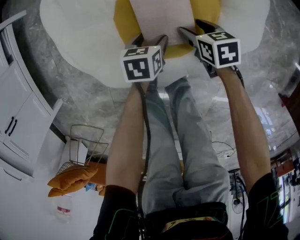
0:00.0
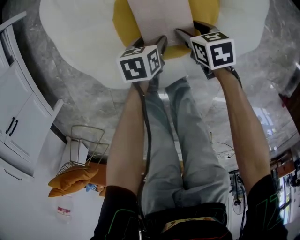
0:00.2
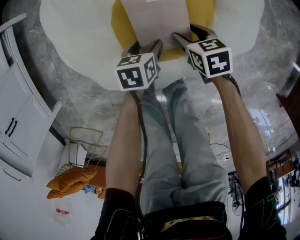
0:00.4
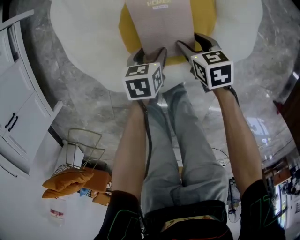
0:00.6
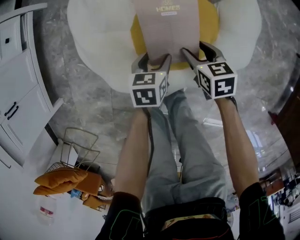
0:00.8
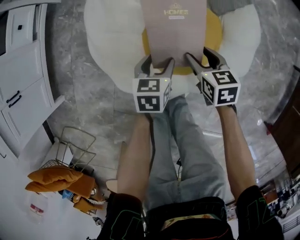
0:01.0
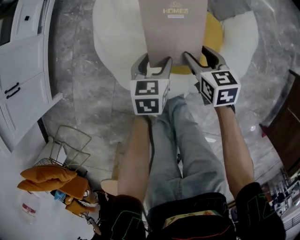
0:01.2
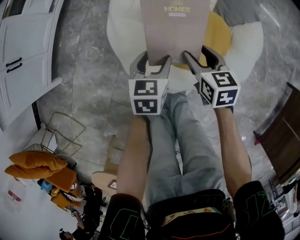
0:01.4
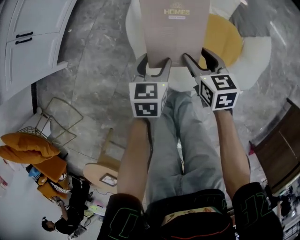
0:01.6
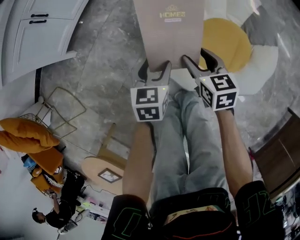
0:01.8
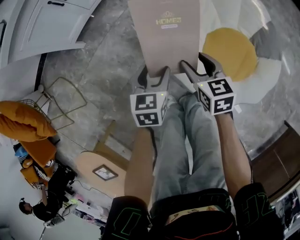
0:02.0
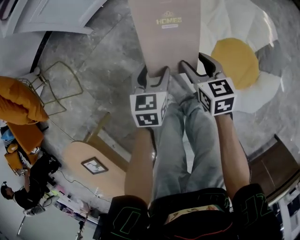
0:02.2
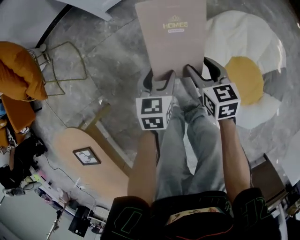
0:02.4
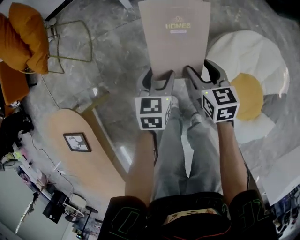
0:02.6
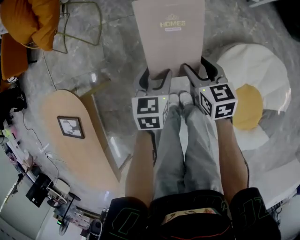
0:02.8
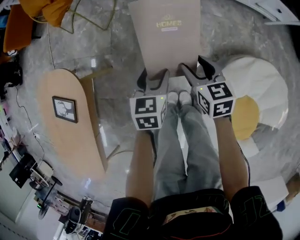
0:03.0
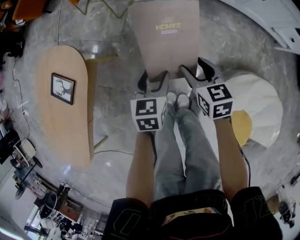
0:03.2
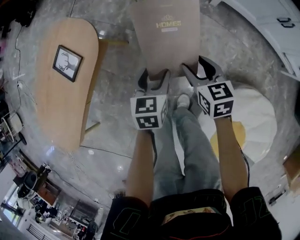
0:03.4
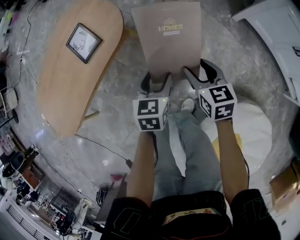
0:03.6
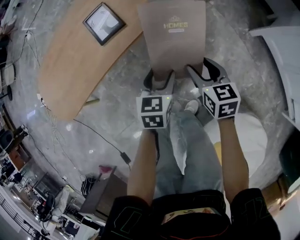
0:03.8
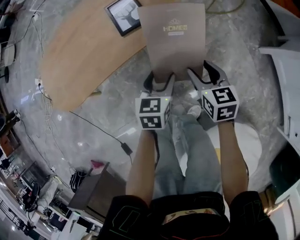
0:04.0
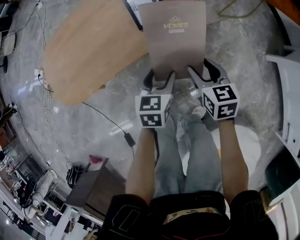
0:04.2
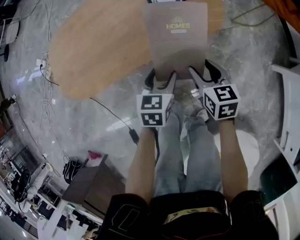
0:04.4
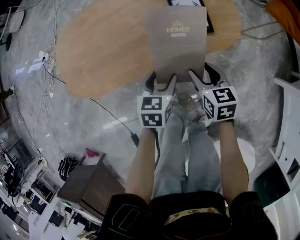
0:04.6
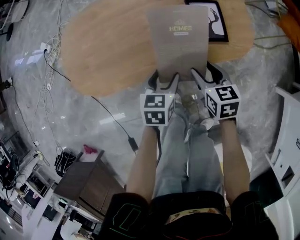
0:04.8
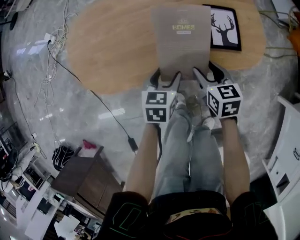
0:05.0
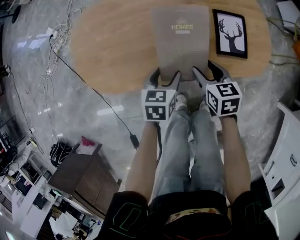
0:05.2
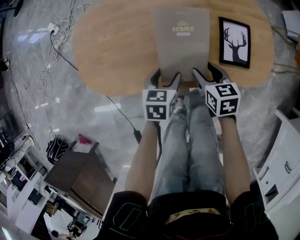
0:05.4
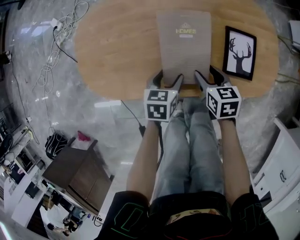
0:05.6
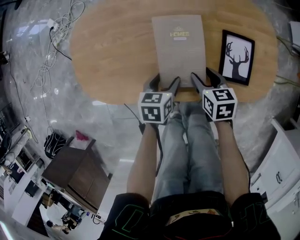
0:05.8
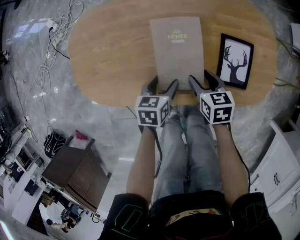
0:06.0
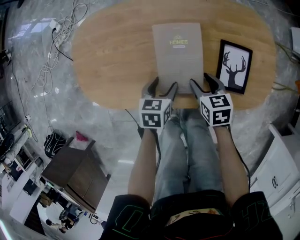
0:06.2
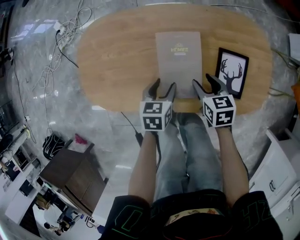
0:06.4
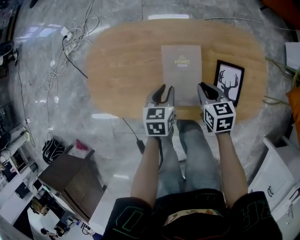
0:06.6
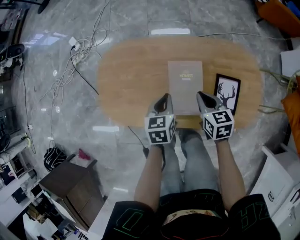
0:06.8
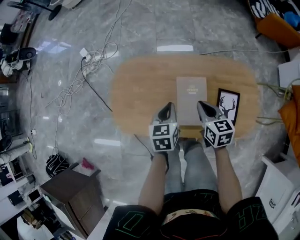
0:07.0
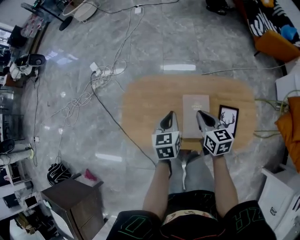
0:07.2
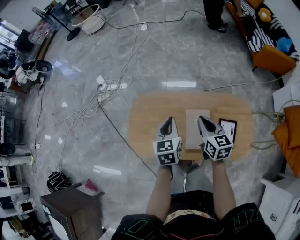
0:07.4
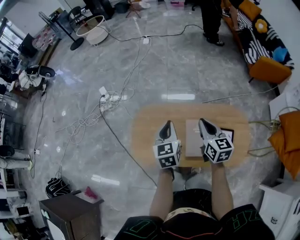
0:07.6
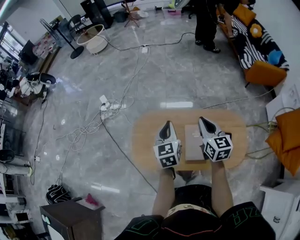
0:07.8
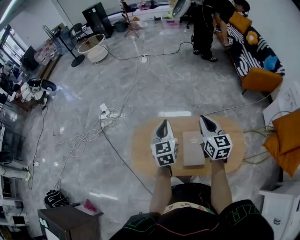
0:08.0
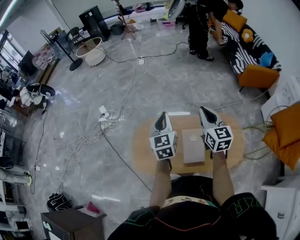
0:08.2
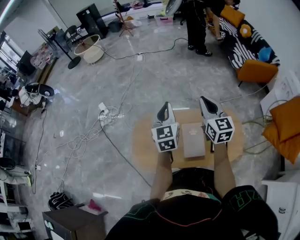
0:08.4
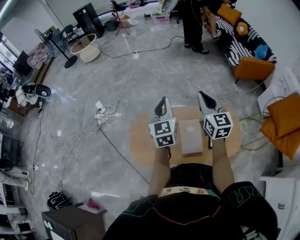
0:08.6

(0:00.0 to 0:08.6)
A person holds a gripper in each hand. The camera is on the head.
0:00.0 - 0:01.4: The two grippers go approximately 25 cm upward and to the left. The left gripper rotates roughly 30 degrees. The right gripper changes its angle by some 20 degrees.
0:01.4 - 0:02.8: The pair of grippers is taken approximately 50 cm. The right gripper turns by approximately 60 degrees; the left gripper swivels approximately 60 degrees.
0:02.8 - 0:04.4: Both grippers are carried approximately 60 cm. The right gripper rotates roughly 70 degrees; the left gripper rotates roughly 70 degrees.
0:04.4 - 0:05.8: The left gripper moves forward, to the left and downward, about 25 cm, and rotates approximately 30 degrees, while the right gripper is displaced forward and to the left by about 30 cm, and swivels roughly 20 degrees.
0:05.8 - 0:07.2: Both grippers travel together upward, approximately 30 cm. The left gripper changes its angle by approximately 30 degrees, and closes, while the right gripper turns by roughly 20 degrees, and closes.
0:07.2 - 0:08.6: The two grippers go roughly 30 cm upward. The right gripper changes its angle by roughly 30 degrees, while the left gripper rotates approximately 30 degrees.

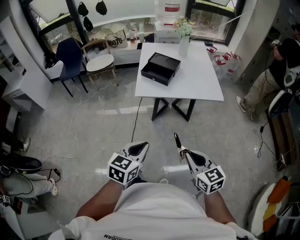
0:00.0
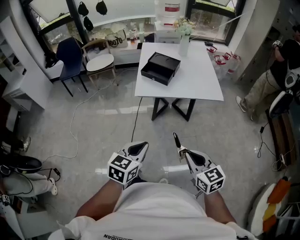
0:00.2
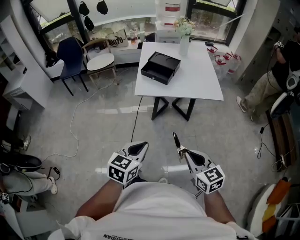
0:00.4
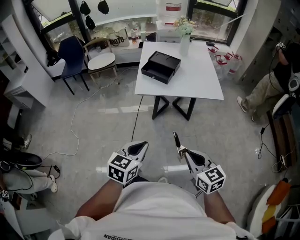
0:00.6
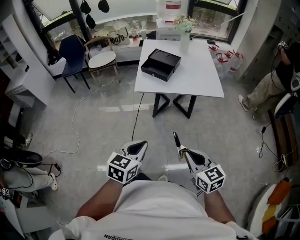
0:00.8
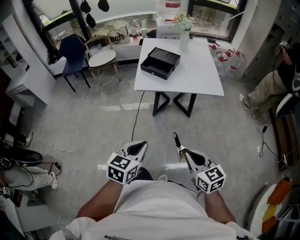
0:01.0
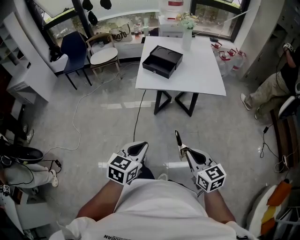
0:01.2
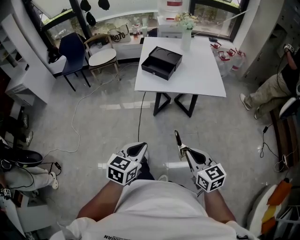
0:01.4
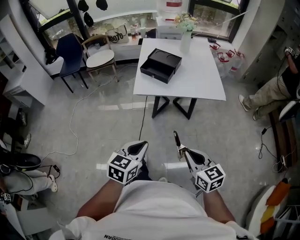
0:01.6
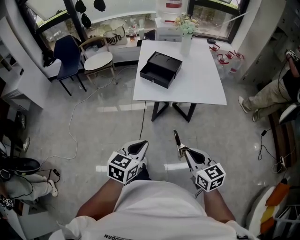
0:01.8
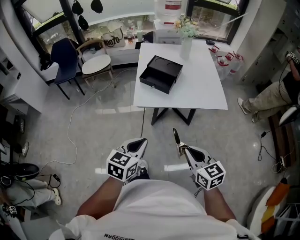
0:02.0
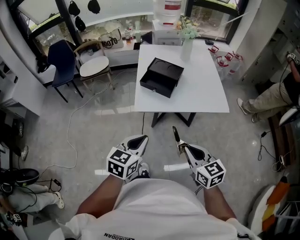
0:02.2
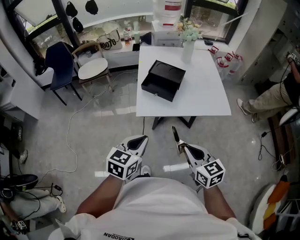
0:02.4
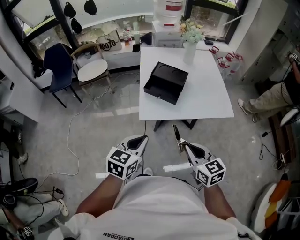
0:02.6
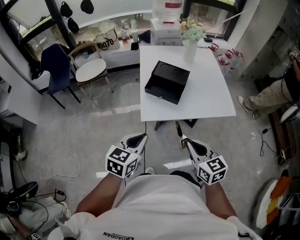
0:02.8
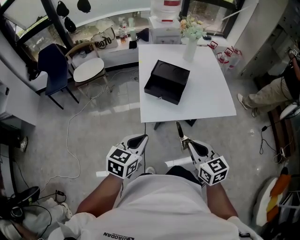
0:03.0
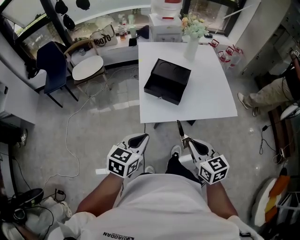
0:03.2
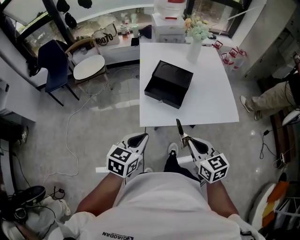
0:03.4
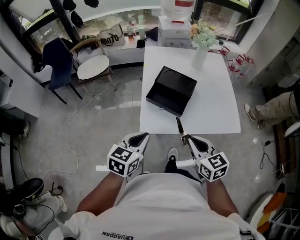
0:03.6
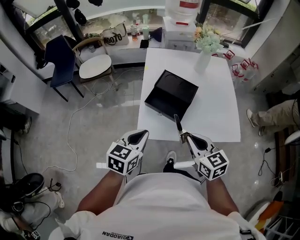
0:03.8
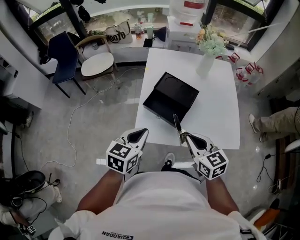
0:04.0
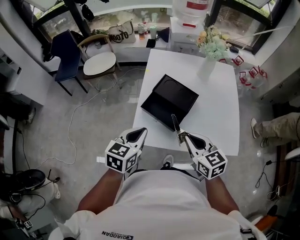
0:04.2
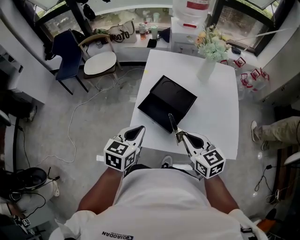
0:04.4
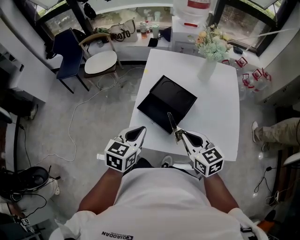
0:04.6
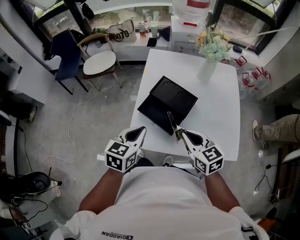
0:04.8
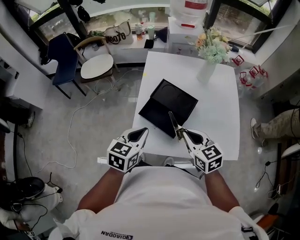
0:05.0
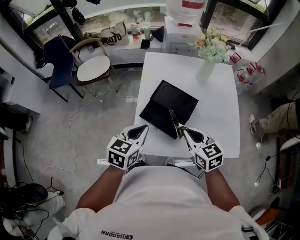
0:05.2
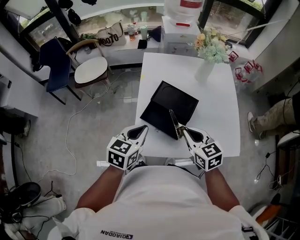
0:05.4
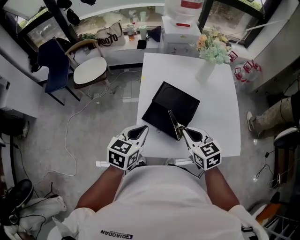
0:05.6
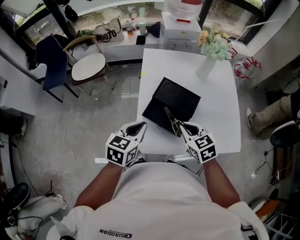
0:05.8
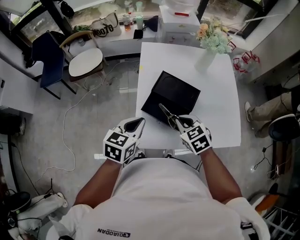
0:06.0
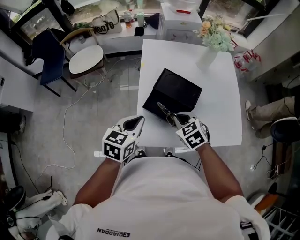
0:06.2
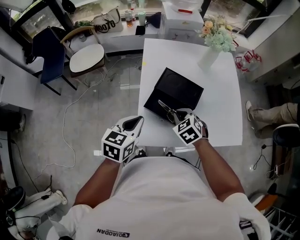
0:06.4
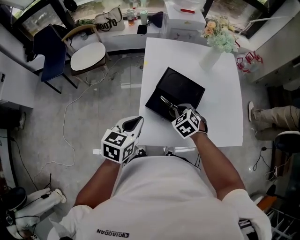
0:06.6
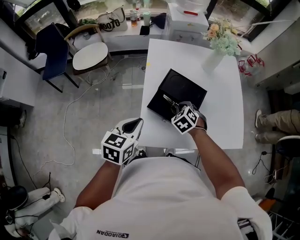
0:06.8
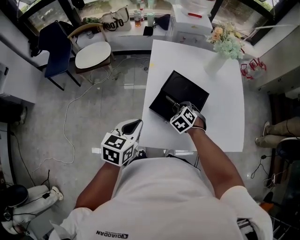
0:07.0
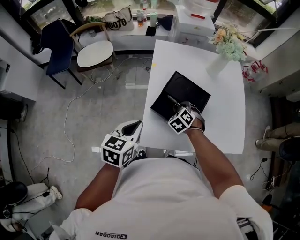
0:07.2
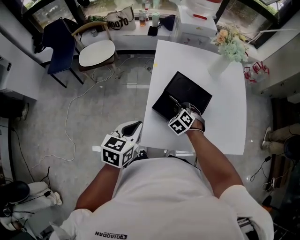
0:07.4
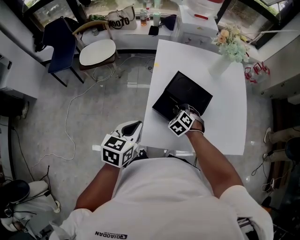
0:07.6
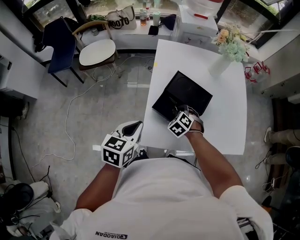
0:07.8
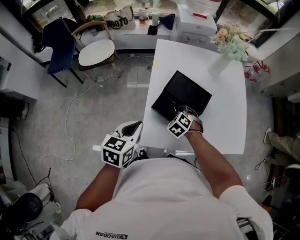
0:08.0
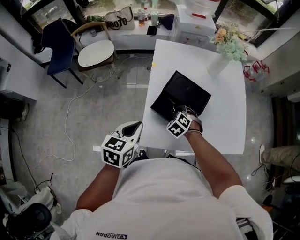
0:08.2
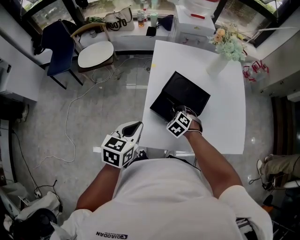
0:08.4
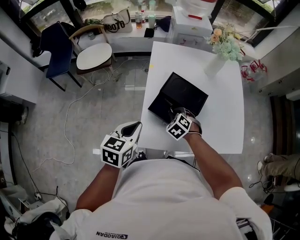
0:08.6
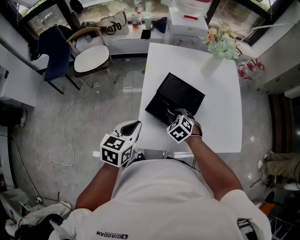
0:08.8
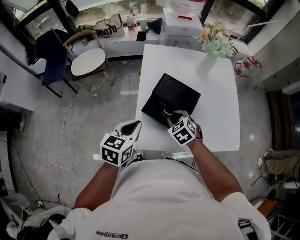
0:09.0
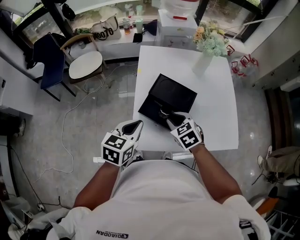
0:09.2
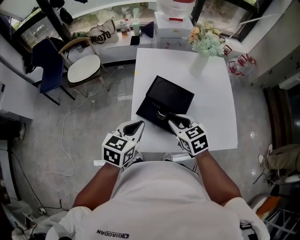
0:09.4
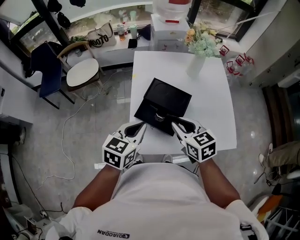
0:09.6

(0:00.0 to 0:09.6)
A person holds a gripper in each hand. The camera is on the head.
0:00.0 - 0:01.6: The grippers stay close to where they were, moving slightly.
0:01.6 - 0:03.2: The two grippers go some 30 cm forward and to the left.
0:03.2 - 0:04.8: The two grippers go roughly 20 cm forward. The right gripper changes its angle by approximately 20 degrees.
0:04.8 - 0:06.4: The left gripper moves to the left, roughly 10 cm. Meanwhile the right gripper is displaced downward, to the left and forward by some 15 cm, and changes its angle by approximately 40 degrees.
0:06.4 - 0:08.0: The right gripper travels downward by approximately 10 cm, and changes its angle by approximately 20 degrees.
0:08.0 - 0:09.6: The right gripper goes some 20 cm upward, and swivels some 60 degrees; the left gripper goes approximately 10 cm to the right.

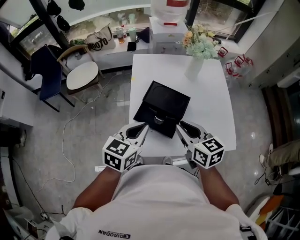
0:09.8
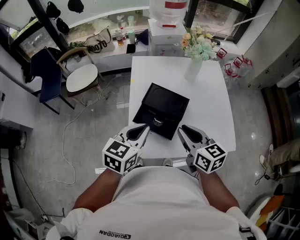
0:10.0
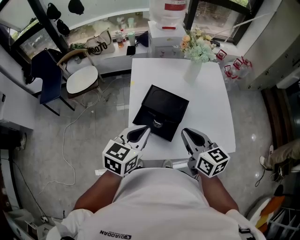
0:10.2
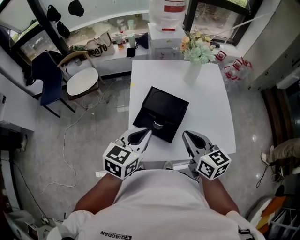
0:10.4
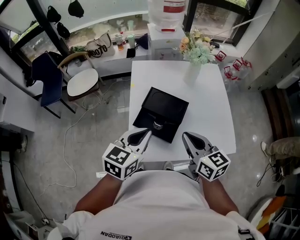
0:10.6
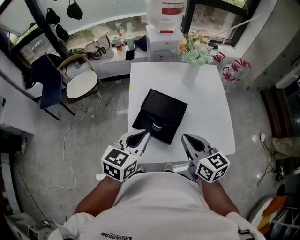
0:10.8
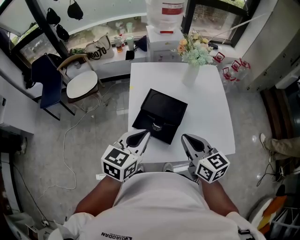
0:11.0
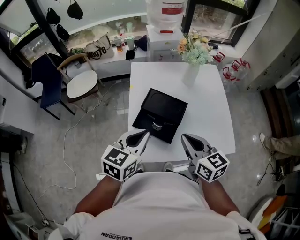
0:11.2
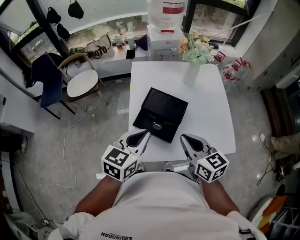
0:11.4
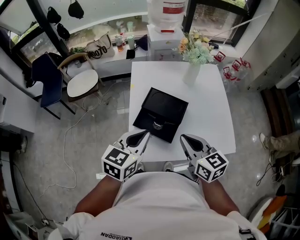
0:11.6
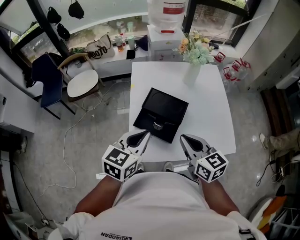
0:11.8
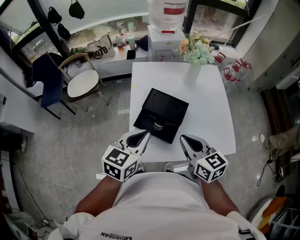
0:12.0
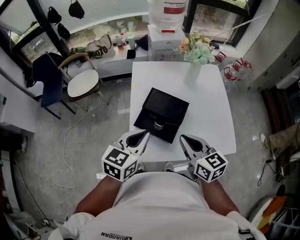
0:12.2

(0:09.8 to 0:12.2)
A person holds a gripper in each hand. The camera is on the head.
0:09.8 - 0:12.2: The grippers move only a little.

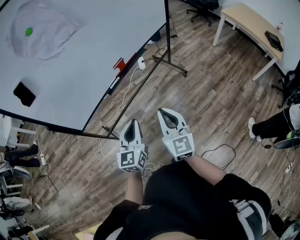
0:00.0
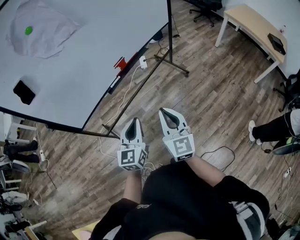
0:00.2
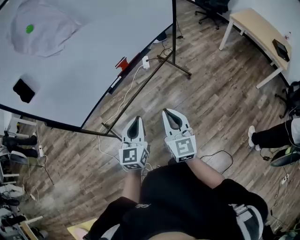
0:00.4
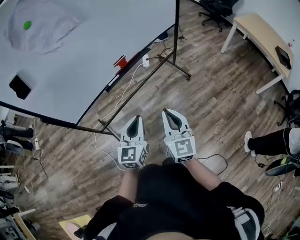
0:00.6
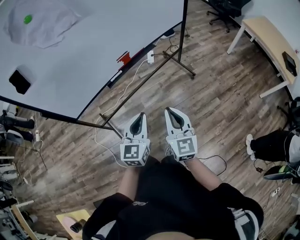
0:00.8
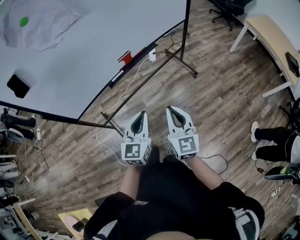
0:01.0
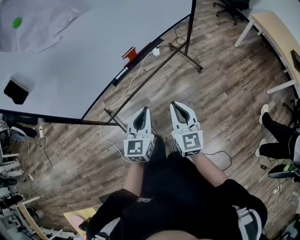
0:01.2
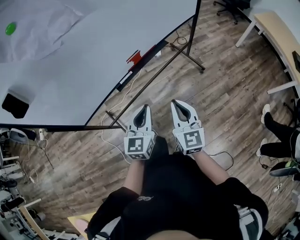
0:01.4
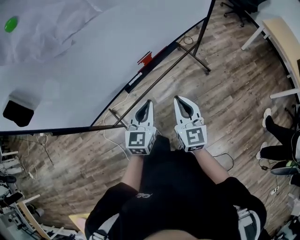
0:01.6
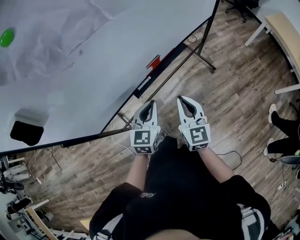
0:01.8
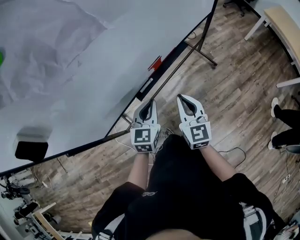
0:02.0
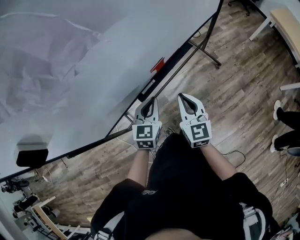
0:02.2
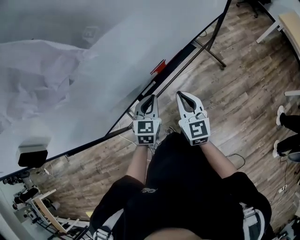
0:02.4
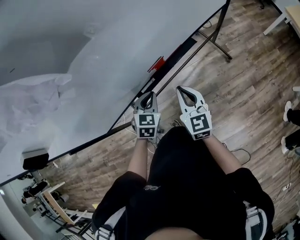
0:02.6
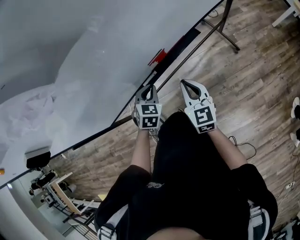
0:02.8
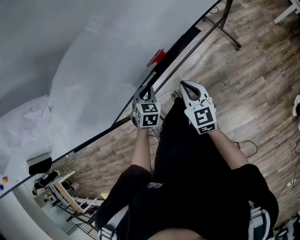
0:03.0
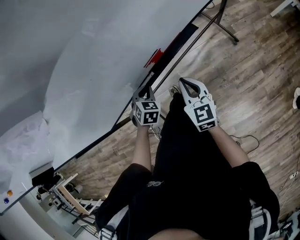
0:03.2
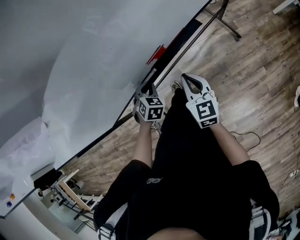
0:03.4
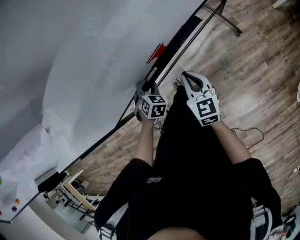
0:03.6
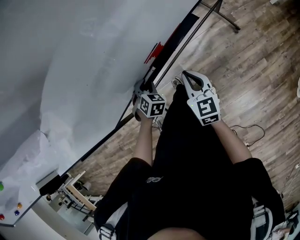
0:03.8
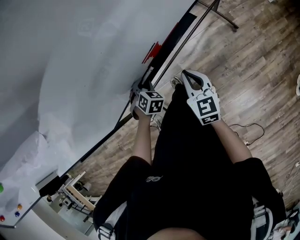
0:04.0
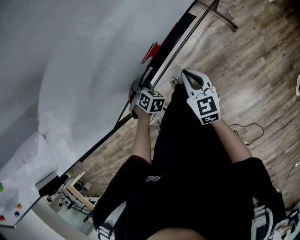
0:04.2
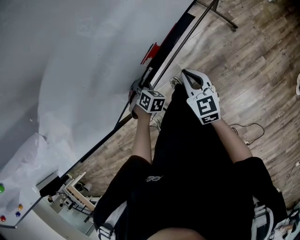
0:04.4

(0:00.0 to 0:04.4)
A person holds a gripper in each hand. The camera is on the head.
0:00.0 - 0:01.4: Both grippers move forward, about 15 cm.
0:01.4 - 0:03.0: The left gripper goes approximately 30 cm forward, downward and to the left, and angles its fingers downward, by roughly 40 degrees. The right gripper heads forward and downward, covering roughly 25 cm.
0:03.0 - 0:04.4: The left gripper shifts approximately 10 cm downward, and swivels about 20 degrees.
